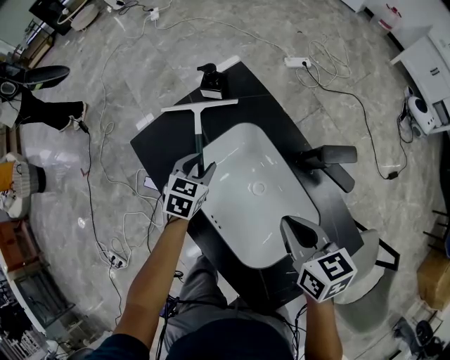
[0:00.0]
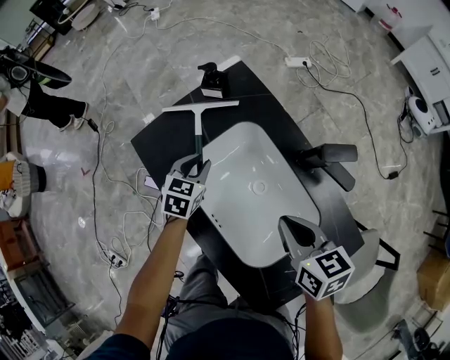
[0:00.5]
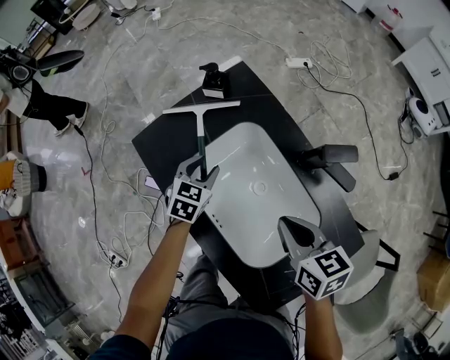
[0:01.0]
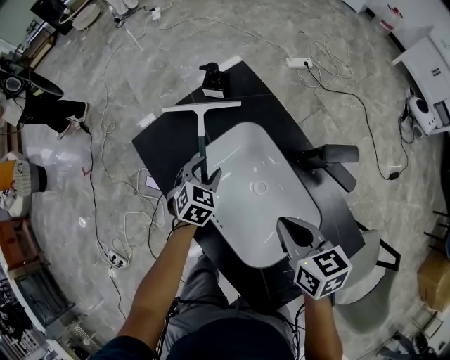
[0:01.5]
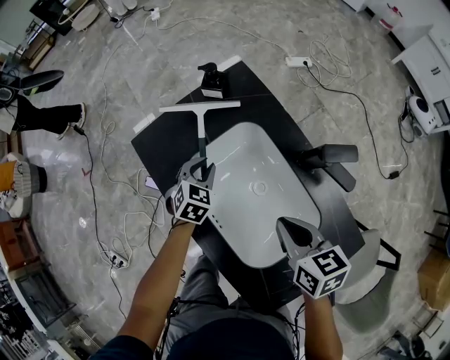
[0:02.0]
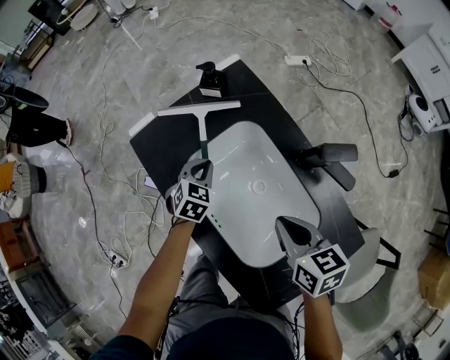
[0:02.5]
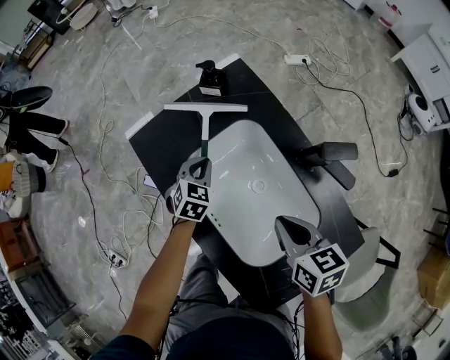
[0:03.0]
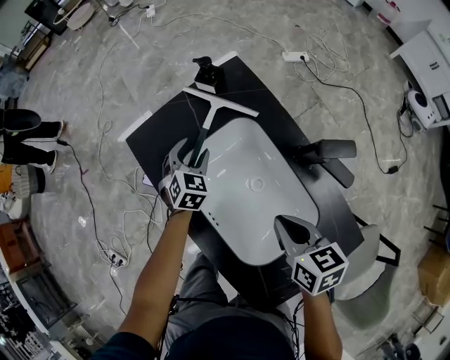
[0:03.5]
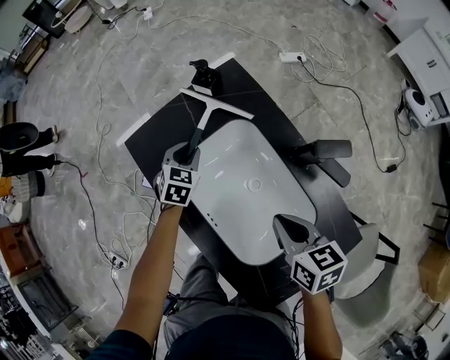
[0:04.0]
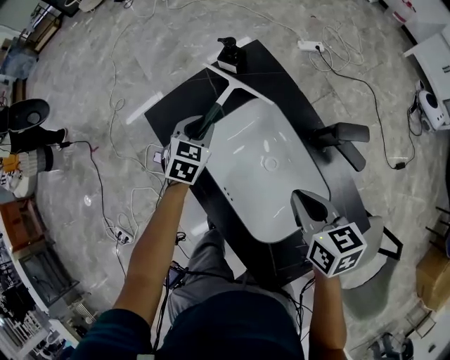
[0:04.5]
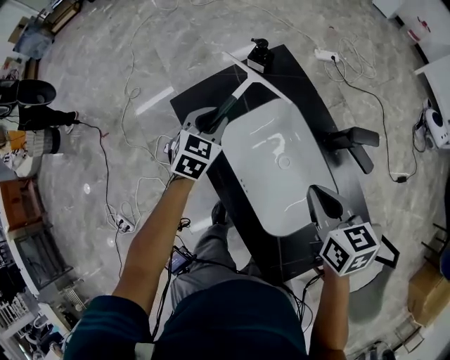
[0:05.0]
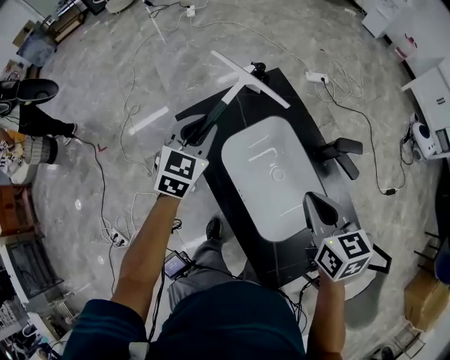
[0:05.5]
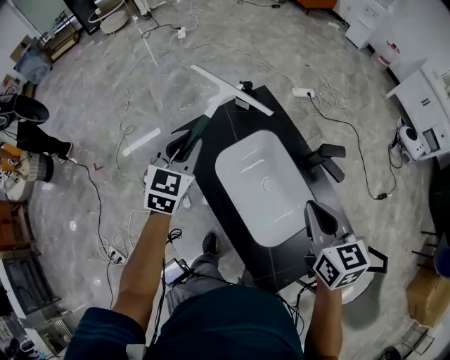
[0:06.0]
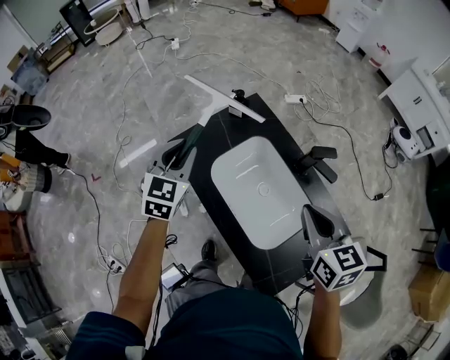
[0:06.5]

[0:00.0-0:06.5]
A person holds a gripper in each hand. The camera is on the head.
0:00.0 to 0:02.0: The grippers make only small movements.
0:02.0 to 0:04.5: The left gripper is displaced upward by some 5 cm, and opens, then closes again.
0:04.5 to 0:06.5: The grippers both shift upward by about 25 cm. The left gripper turns by approximately 20 degrees.

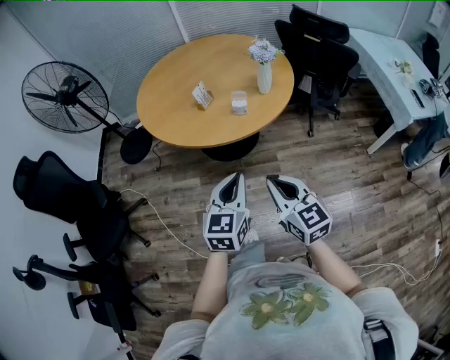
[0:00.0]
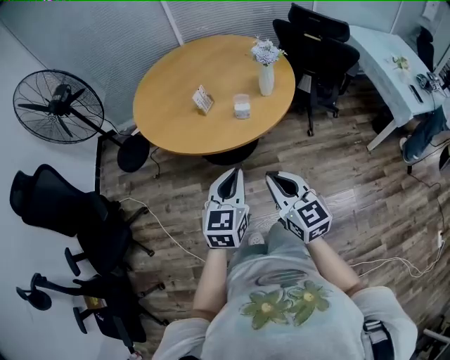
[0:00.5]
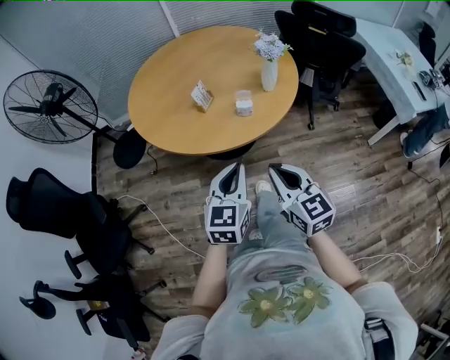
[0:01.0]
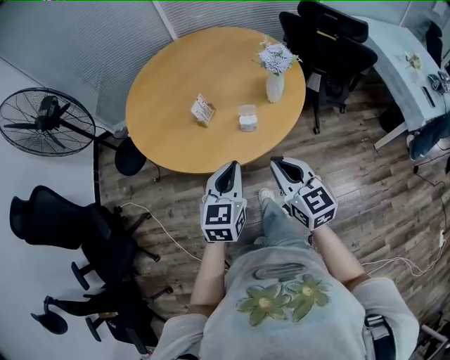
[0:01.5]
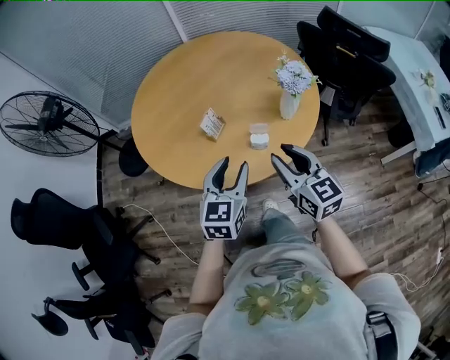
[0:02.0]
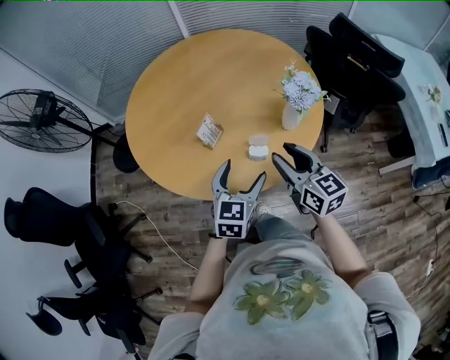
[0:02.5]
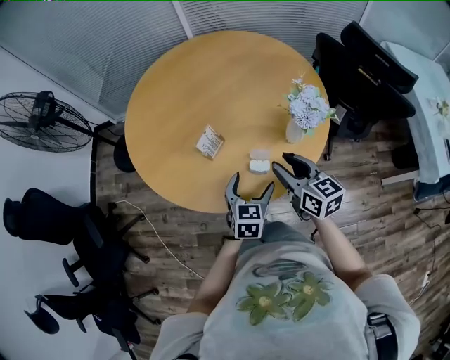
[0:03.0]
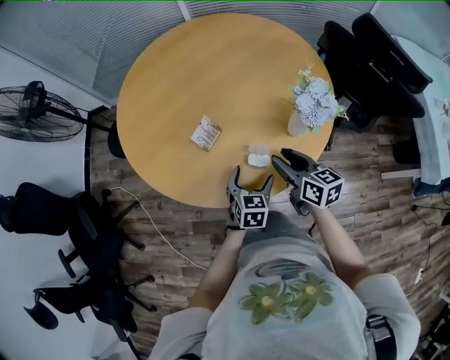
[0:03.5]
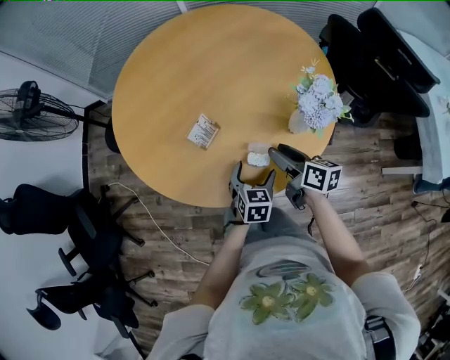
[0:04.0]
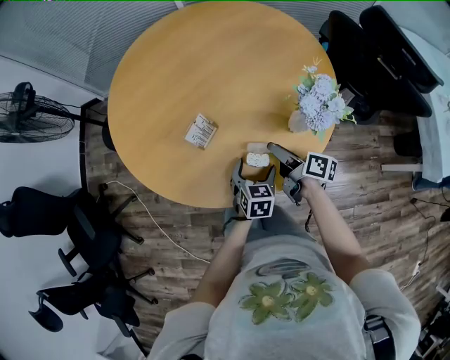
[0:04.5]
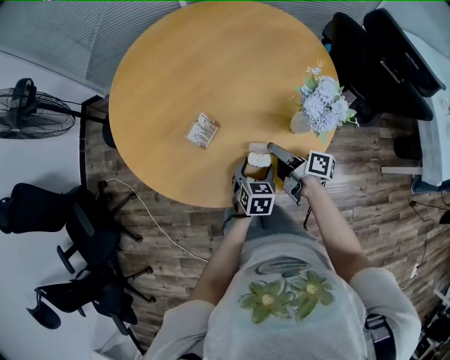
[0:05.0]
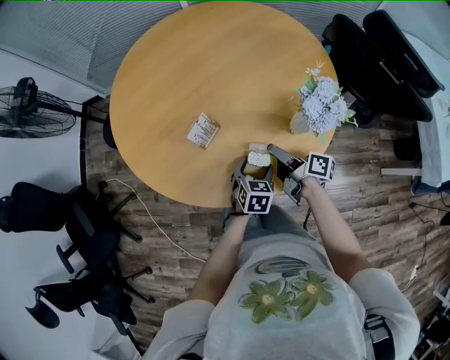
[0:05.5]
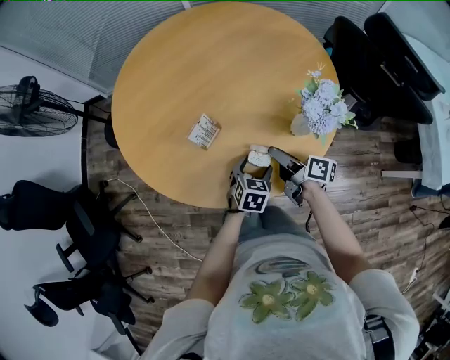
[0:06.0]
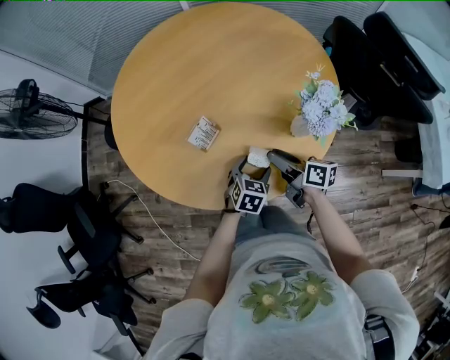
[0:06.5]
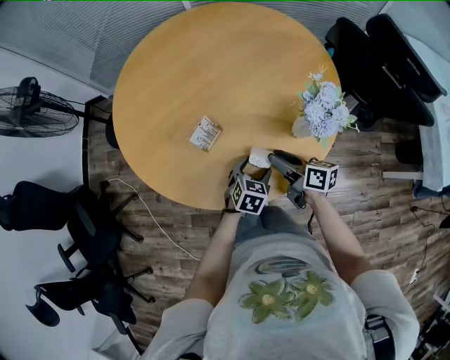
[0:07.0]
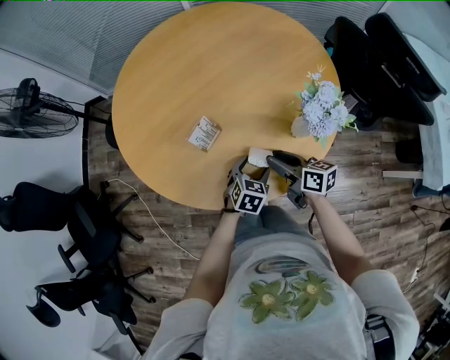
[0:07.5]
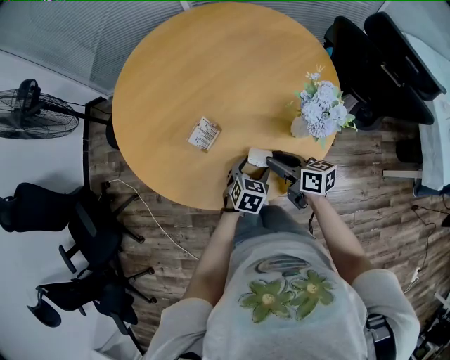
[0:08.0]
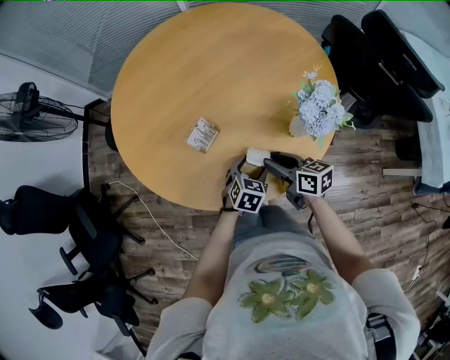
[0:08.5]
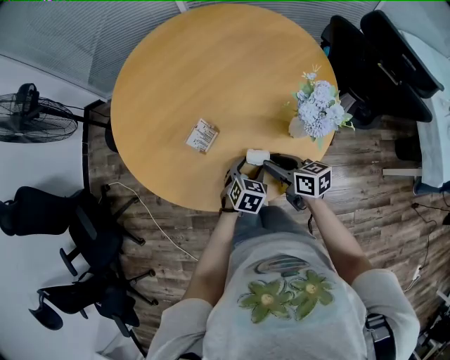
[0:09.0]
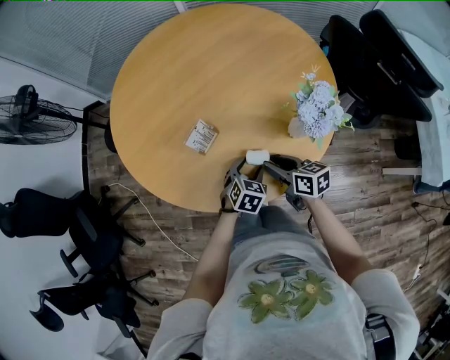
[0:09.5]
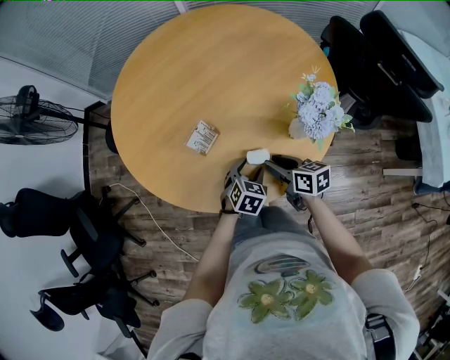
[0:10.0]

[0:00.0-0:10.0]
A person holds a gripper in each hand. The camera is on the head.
0:00.0 to 0:02.0: The two grippers go approximately 30 cm forward. The left gripper opens. The right gripper opens.
0:02.0 to 0:04.0: The left gripper heads downward, forward and to the right, covering some 30 cm, changes its angle by approximately 30 degrees, and opens. The right gripper shifts roughly 25 cm downward and forward, turns by about 40 degrees, and opens up.
0:04.0 to 0:06.0: The right gripper swivels about 20 degrees.
0:06.0 to 0:08.0: The right gripper rotates some 30 degrees.
0:08.0 to 0:10.0: The grippers move only a little.

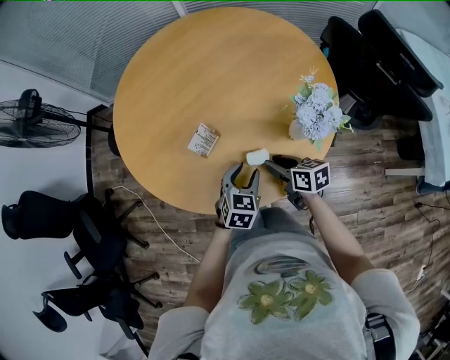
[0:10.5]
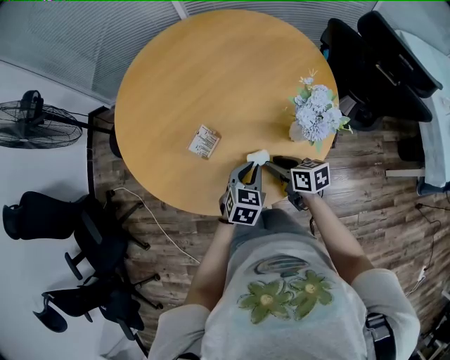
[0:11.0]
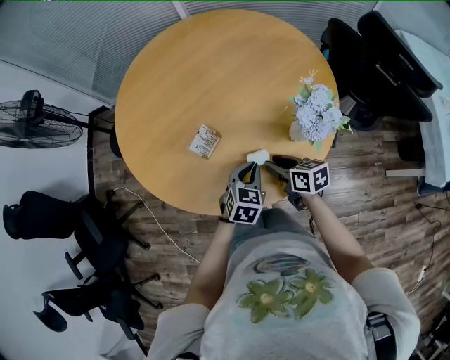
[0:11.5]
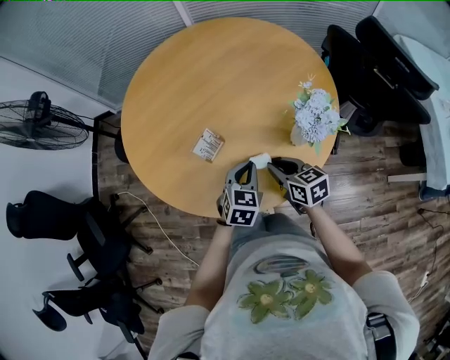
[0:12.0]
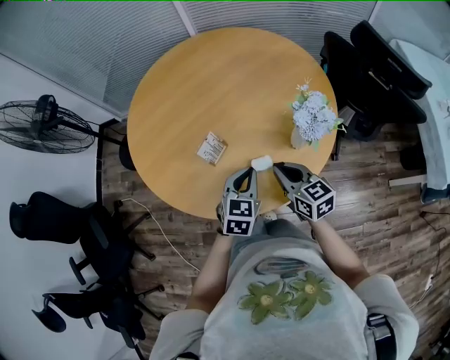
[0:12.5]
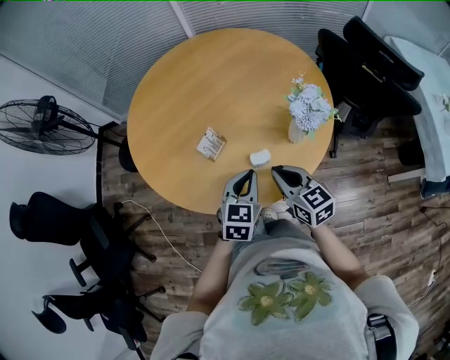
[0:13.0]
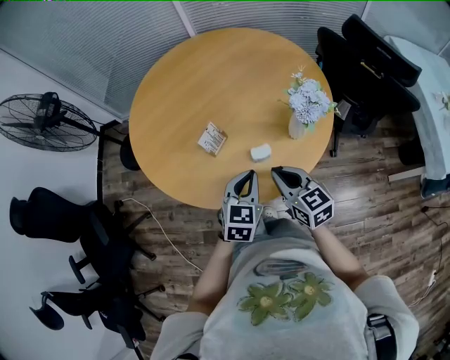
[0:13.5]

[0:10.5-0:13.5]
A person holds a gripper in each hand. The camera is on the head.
0:10.5 to 0:12.0: The left gripper closes.
0:12.0 to 0:13.5: The right gripper travels upward and backward by about 10 cm; the left gripper is displaced backward and upward by some 10 cm.

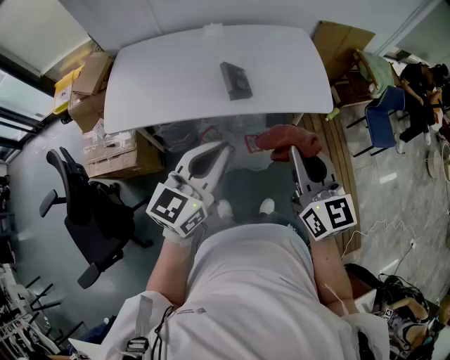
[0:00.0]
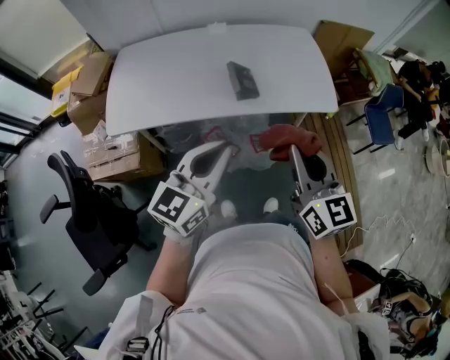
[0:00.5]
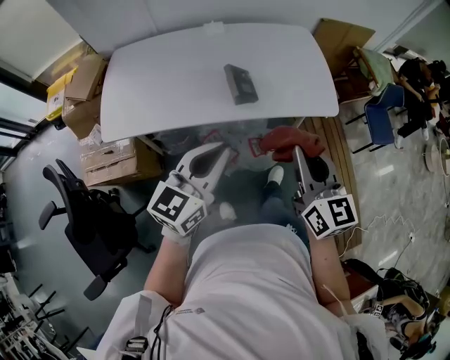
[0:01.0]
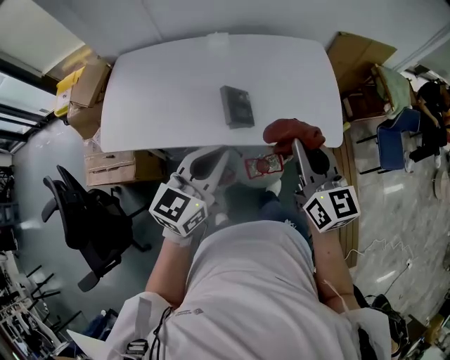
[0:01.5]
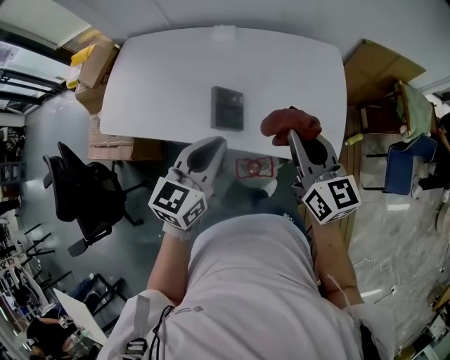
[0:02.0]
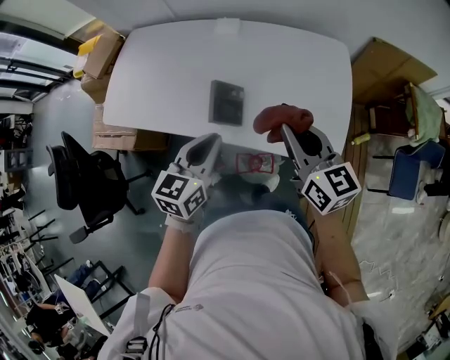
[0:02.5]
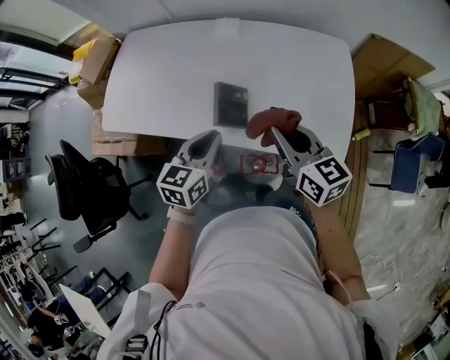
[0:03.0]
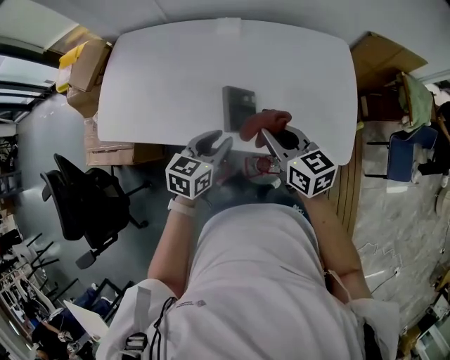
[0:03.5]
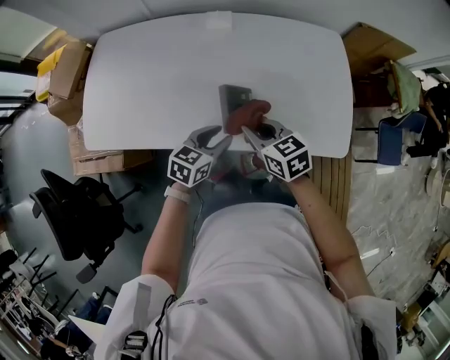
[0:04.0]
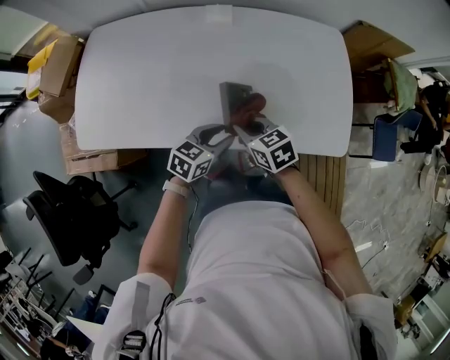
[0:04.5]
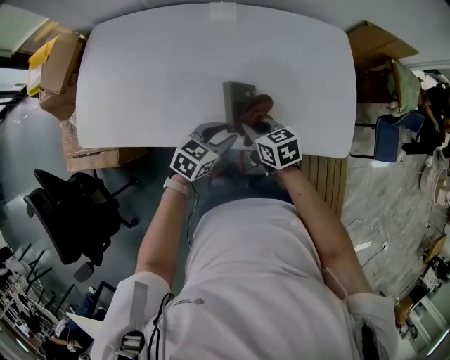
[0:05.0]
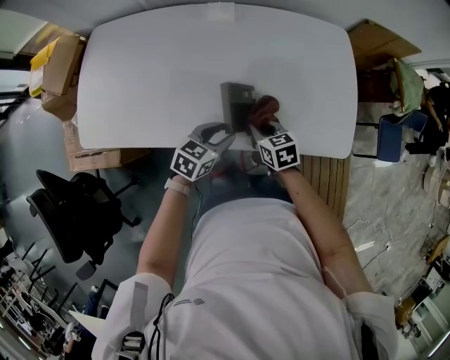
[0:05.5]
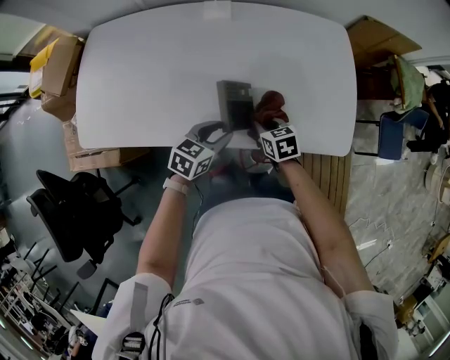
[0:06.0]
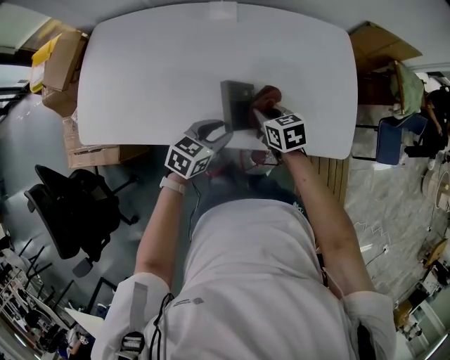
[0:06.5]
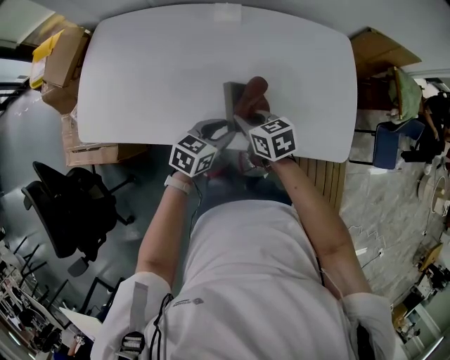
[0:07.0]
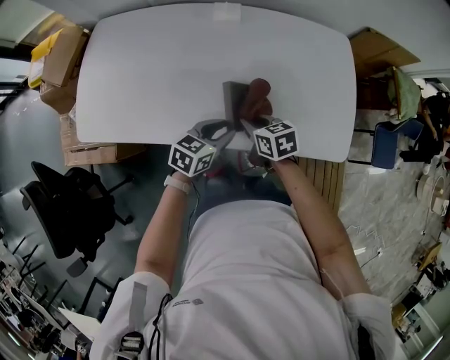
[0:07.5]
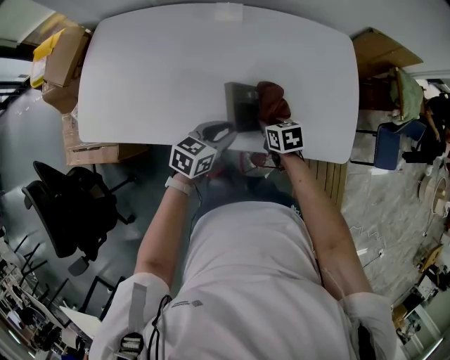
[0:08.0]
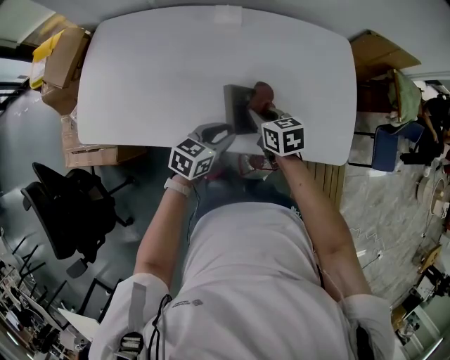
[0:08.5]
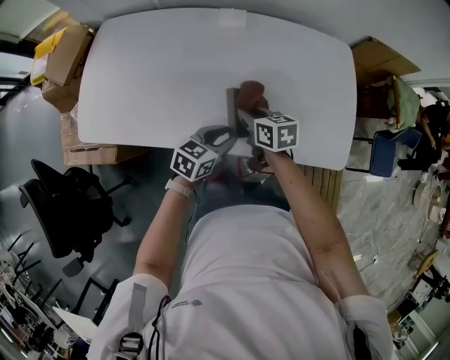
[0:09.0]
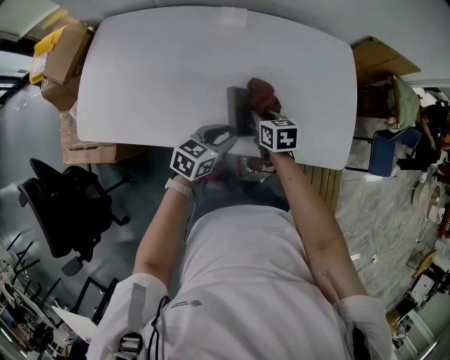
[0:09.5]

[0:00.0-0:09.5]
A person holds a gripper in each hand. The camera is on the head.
0:00.0 to 0:02.0: Both grippers move forward, roughly 25 cm. The left gripper changes its angle by about 20 degrees.
0:02.0 to 0:04.0: The left gripper is displaced downward by approximately 20 cm, turns by about 30 degrees, and opens up; the right gripper is displaced downward and to the left by approximately 25 cm, and rotates about 30 degrees.
0:04.0 to 0:05.5: The right gripper shifts some 10 cm downward.
0:07.5 to 0:09.5: The right gripper goes left and right, about 10 cm each way, reversing 2 times.
